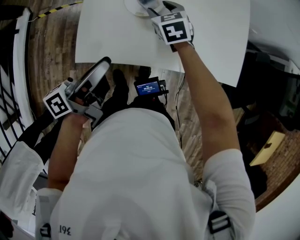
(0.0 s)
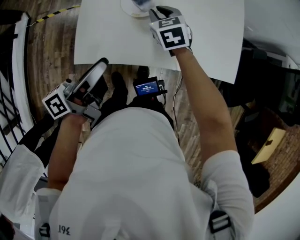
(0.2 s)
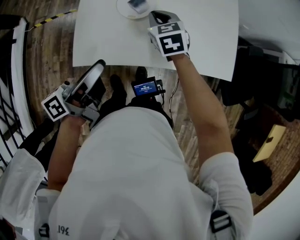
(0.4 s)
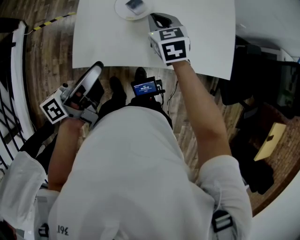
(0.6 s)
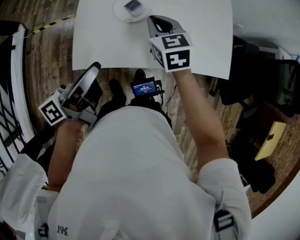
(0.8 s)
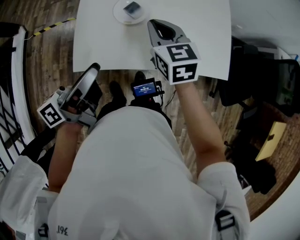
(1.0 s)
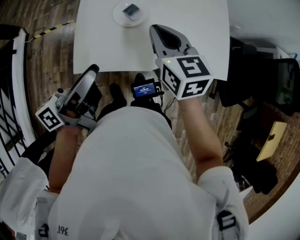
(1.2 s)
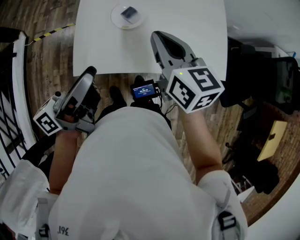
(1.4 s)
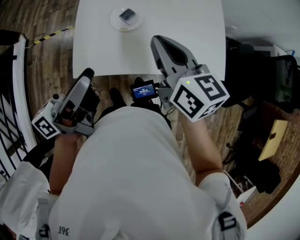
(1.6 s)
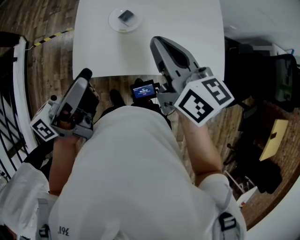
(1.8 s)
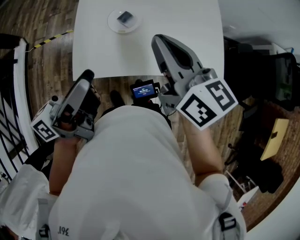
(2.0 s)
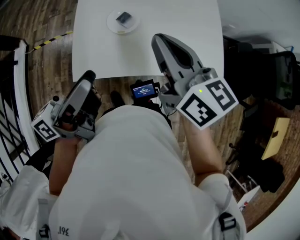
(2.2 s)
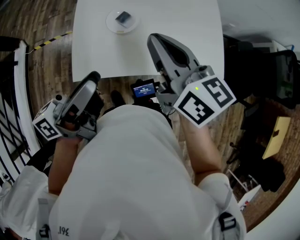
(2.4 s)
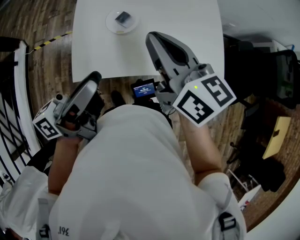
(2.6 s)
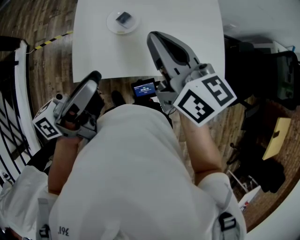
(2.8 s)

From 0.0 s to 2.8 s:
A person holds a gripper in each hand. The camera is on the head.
From 0.0 s to 1.4 s: The right gripper goes roughly 25 cm upward and backward, swivels roughly 40 degrees, and closes up. Meanwhile the left gripper moves upward, approximately 10 cm.
From 1.4 s to 2.8 s: The right gripper travels upward by some 5 cm.

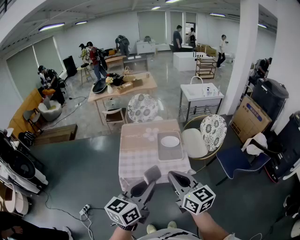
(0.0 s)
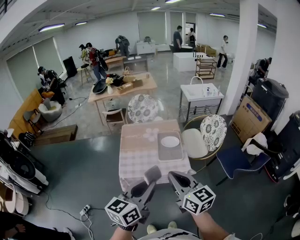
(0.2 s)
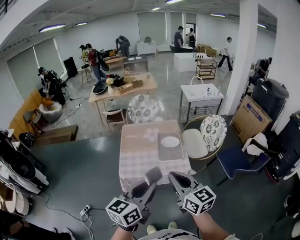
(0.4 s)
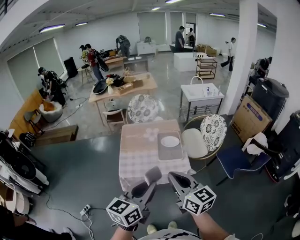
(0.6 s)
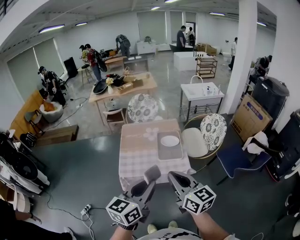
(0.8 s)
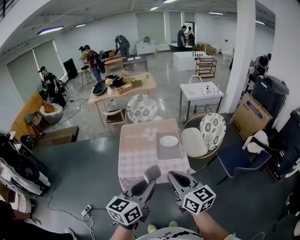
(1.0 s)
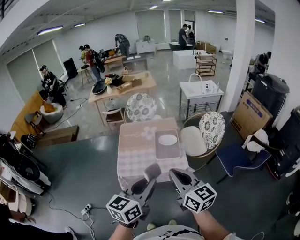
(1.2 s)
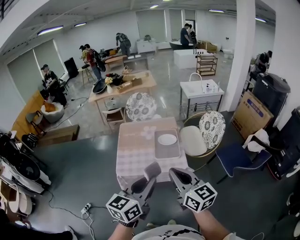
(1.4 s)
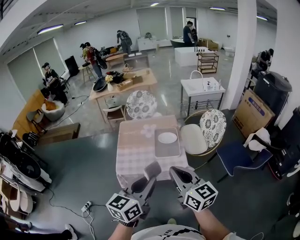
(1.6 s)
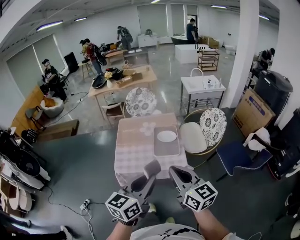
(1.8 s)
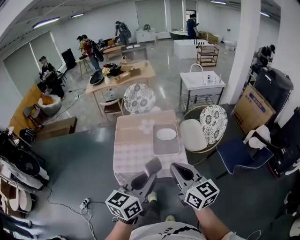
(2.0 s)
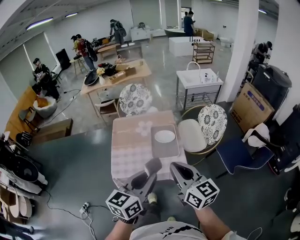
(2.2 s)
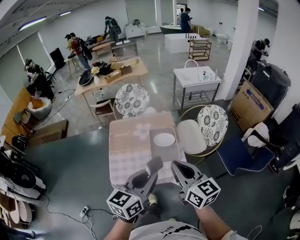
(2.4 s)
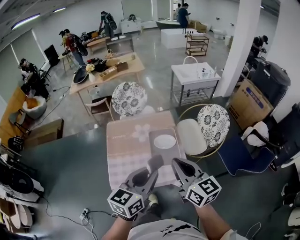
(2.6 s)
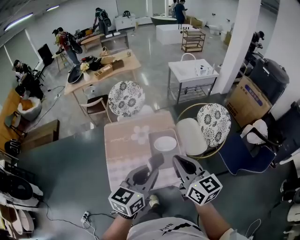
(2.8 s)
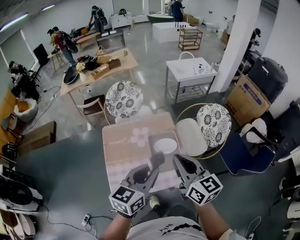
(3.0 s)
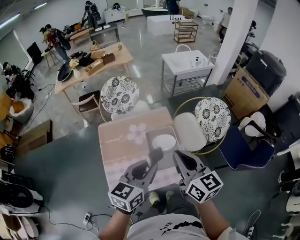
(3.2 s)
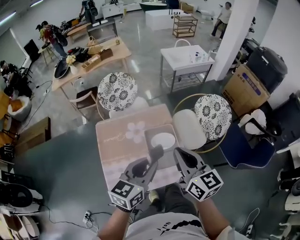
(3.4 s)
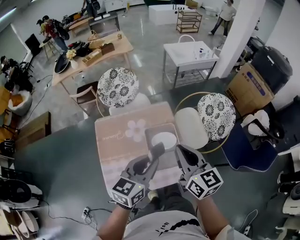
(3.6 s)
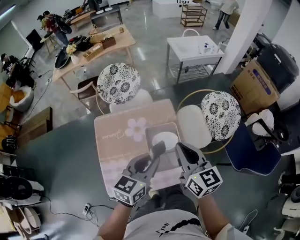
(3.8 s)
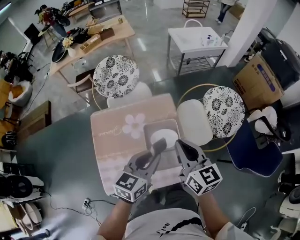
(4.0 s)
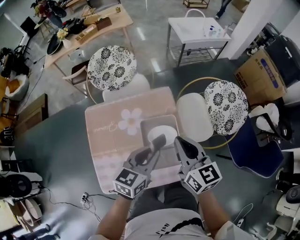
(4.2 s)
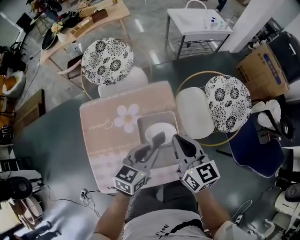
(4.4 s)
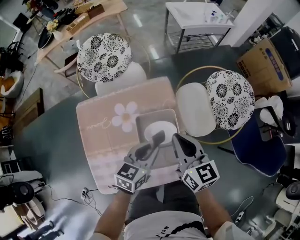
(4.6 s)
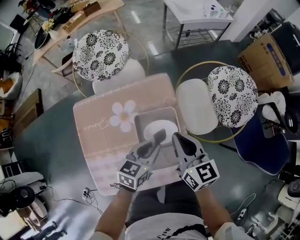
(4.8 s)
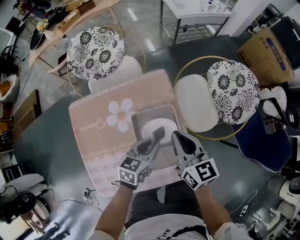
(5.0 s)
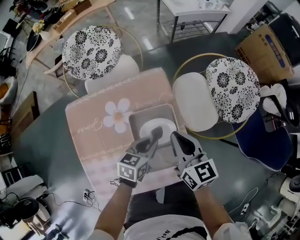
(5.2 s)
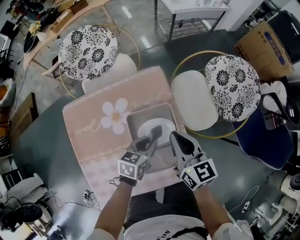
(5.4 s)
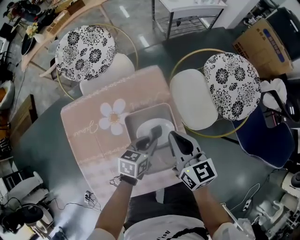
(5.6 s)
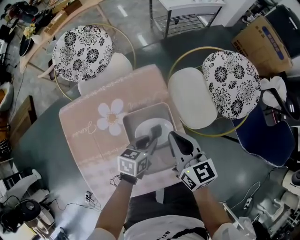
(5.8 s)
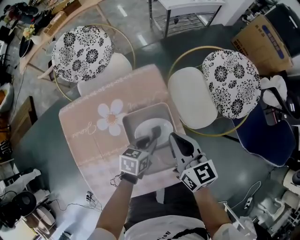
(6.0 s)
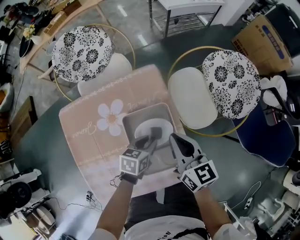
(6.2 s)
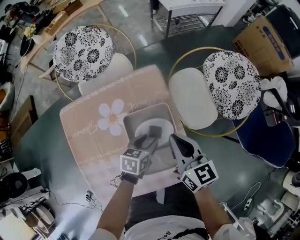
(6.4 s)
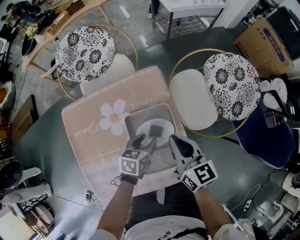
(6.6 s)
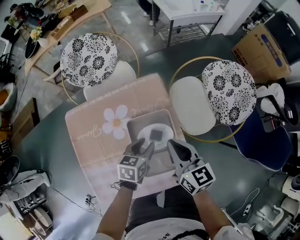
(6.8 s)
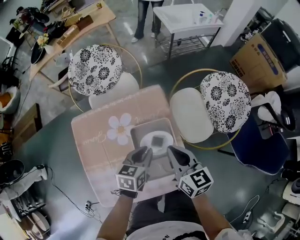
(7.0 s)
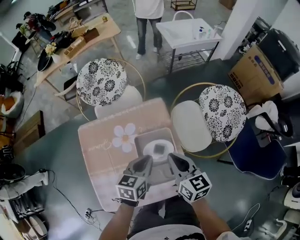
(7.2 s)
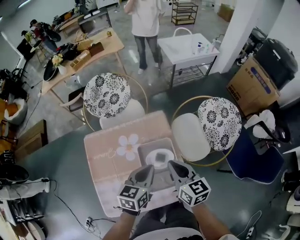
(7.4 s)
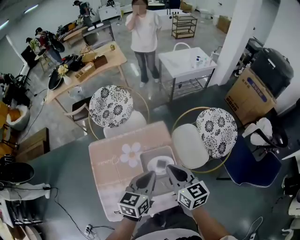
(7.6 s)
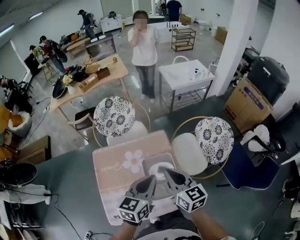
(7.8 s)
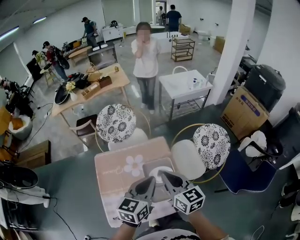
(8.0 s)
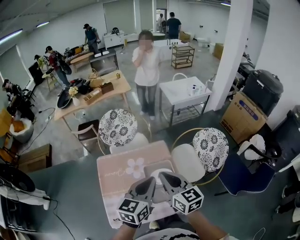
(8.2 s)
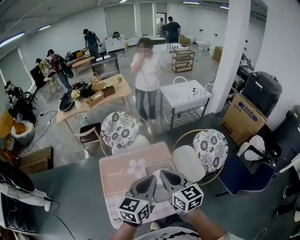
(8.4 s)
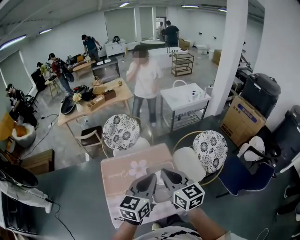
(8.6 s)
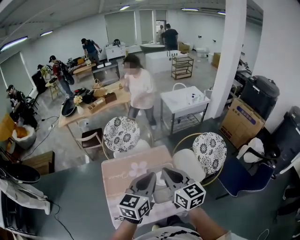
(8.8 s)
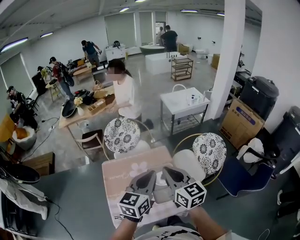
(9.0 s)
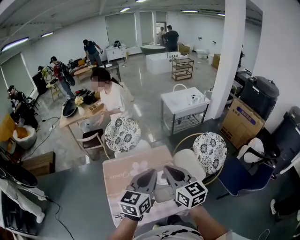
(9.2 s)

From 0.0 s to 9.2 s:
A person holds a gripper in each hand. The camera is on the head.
From 0.0 s to 1.6 s: Both grippers travel together to the right, about 5 cm.
From 1.6 s to 3.0 s: Both grippers move forward, roughly 30 cm.
From 3.0 s to 4.6 s: The two grippers go some 30 cm downward and forward.
From 4.6 s to 6.2 s: The left gripper is displaced downward by approximately 20 cm, and changes its angle by about 20 degrees. The right gripper shifts roughly 10 cm downward.
From 6.2 s to 7.6 s: The left gripper is displaced upward by roughly 30 cm, turns by some 30 degrees, and closes up, while the right gripper moves upward, roughly 15 cm.
From 7.6 s to 9.2 s: The two grippers go some 20 cm upward and backward.

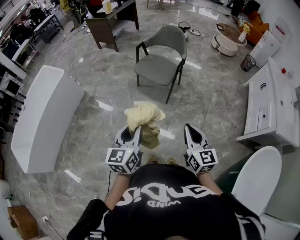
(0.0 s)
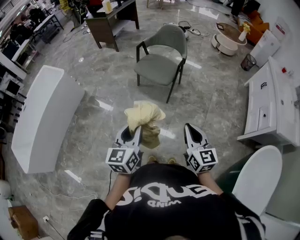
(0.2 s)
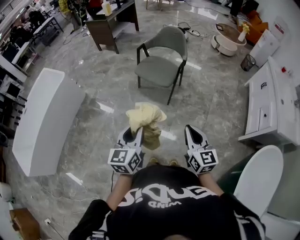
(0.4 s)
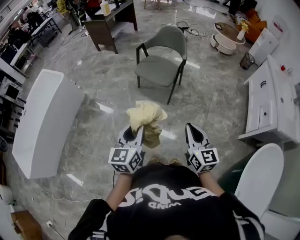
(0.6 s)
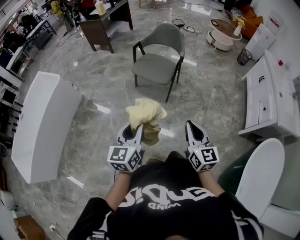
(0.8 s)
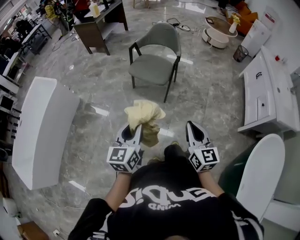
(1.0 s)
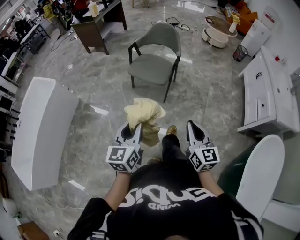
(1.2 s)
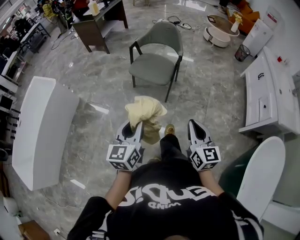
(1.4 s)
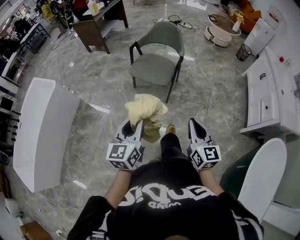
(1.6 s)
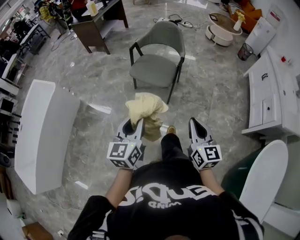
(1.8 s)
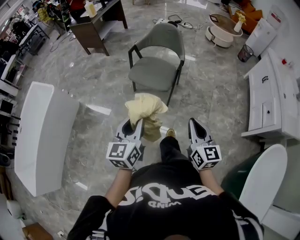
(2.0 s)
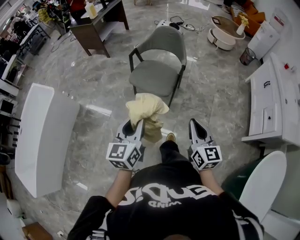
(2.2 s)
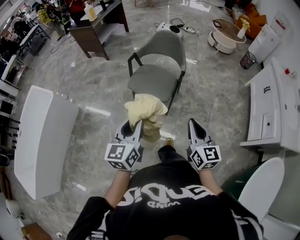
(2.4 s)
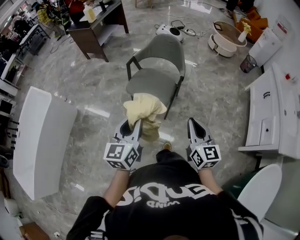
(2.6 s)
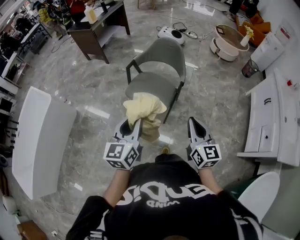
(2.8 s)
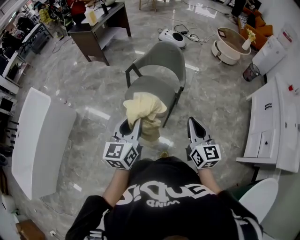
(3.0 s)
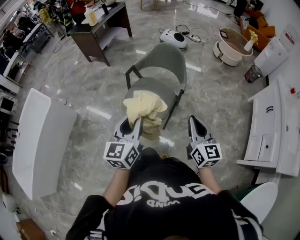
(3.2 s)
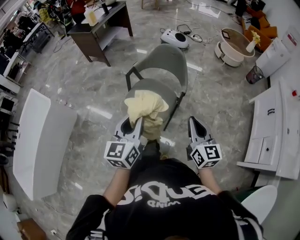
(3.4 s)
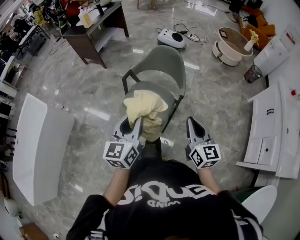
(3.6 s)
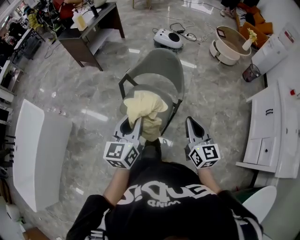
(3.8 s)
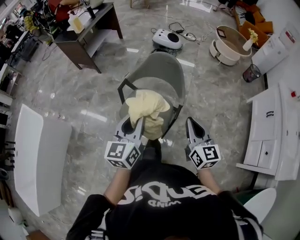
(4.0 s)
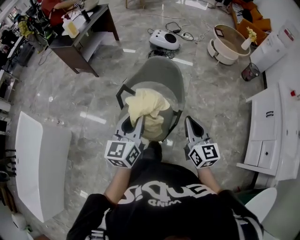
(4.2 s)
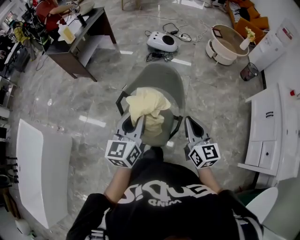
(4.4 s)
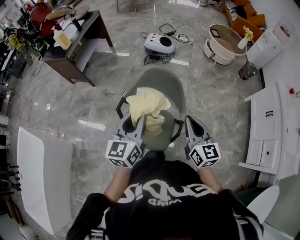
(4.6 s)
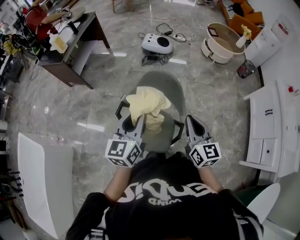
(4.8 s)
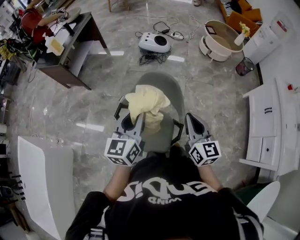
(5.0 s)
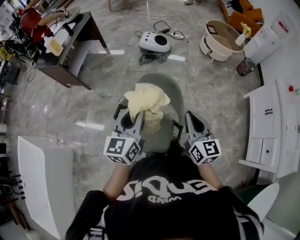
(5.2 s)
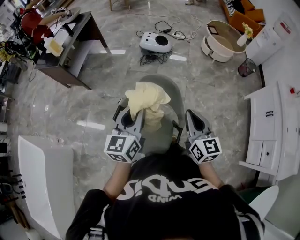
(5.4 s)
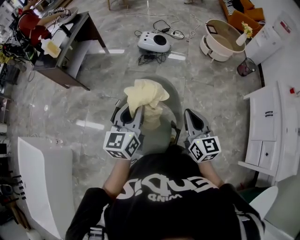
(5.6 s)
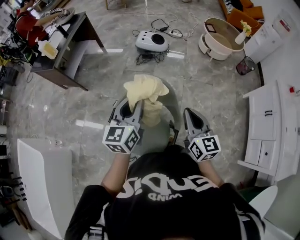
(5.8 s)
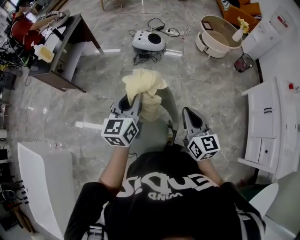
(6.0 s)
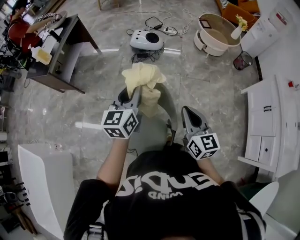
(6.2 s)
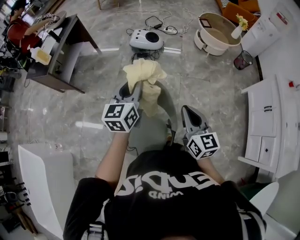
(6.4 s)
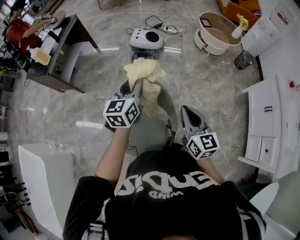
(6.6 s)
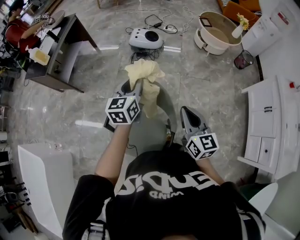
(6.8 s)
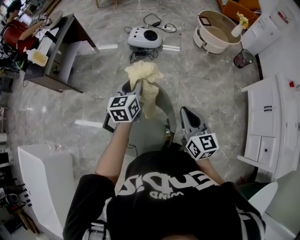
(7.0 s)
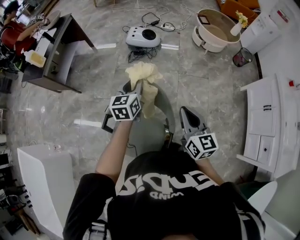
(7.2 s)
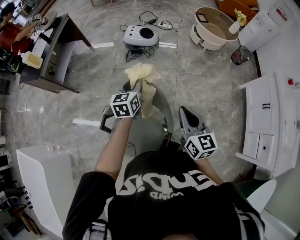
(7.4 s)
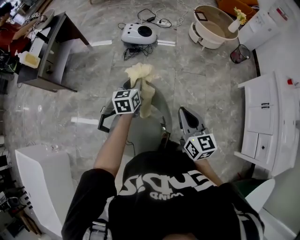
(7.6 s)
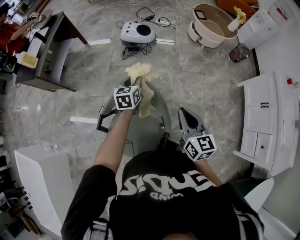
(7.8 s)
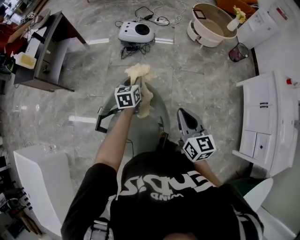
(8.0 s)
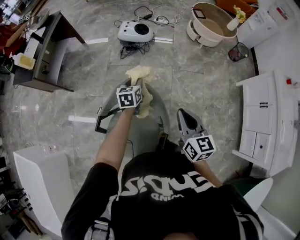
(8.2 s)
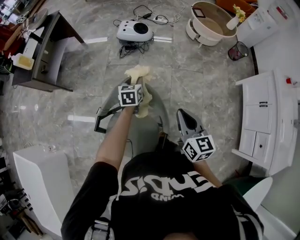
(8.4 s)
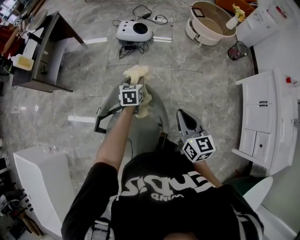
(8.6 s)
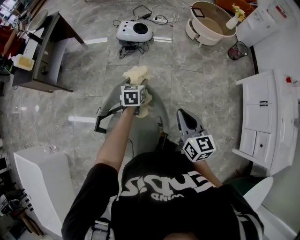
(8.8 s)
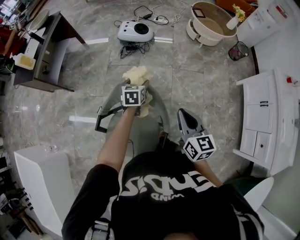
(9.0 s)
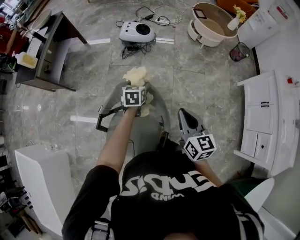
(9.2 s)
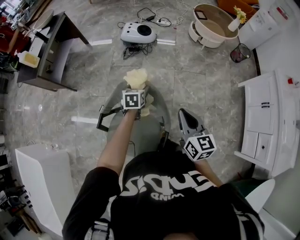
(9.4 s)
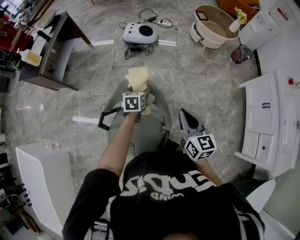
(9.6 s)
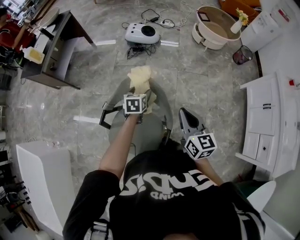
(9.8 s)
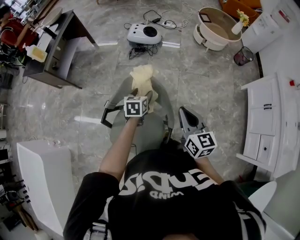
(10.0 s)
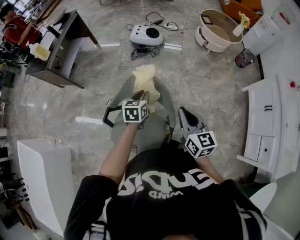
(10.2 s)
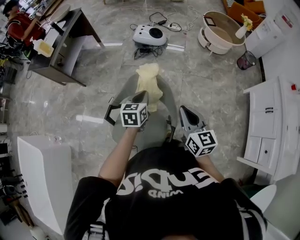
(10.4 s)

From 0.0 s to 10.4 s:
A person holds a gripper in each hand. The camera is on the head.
From 0.0 s to 1.4 s: The right gripper ends up roughly 5 cm from where it was; the left gripper goes some 5 cm forward.
From 1.4 s to 3.0 s: The grippers both shift forward by some 30 cm.
From 3.0 s to 4.4 s: The two grippers go some 30 cm forward.
From 4.4 s to 6.0 s: The grippers both shift forward by about 20 cm.
From 6.0 s to 7.4 s: The left gripper shifts some 20 cm forward and downward. Meanwhile the right gripper moves roughly 5 cm.
From 7.4 s to 9.0 s: The left gripper is displaced downward by about 10 cm, and opens.
From 9.0 s to 10.4 s: The right gripper goes roughly 5 cm backward. The left gripper travels backward and upward by some 15 cm, and closes up.

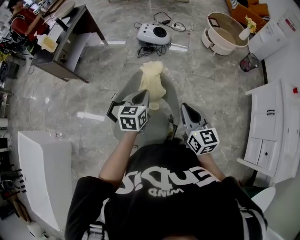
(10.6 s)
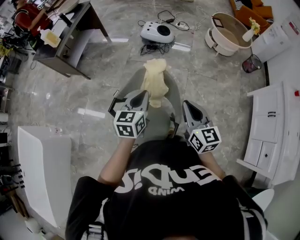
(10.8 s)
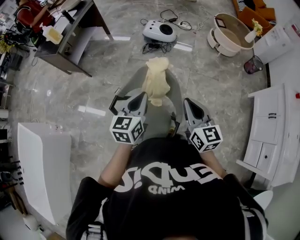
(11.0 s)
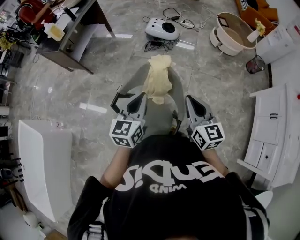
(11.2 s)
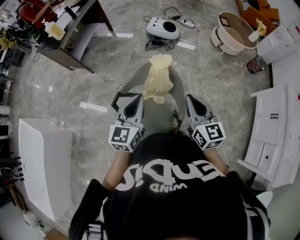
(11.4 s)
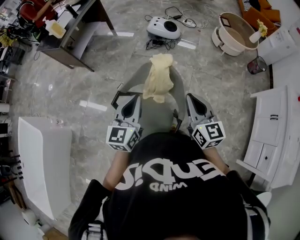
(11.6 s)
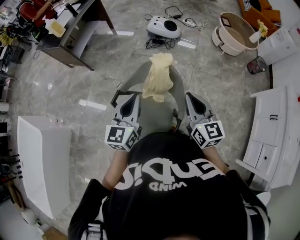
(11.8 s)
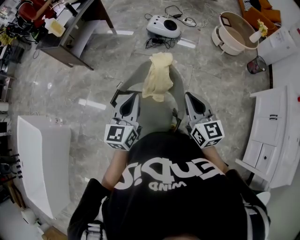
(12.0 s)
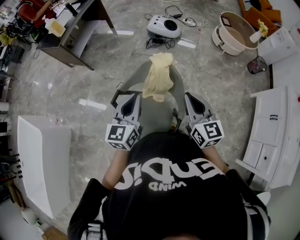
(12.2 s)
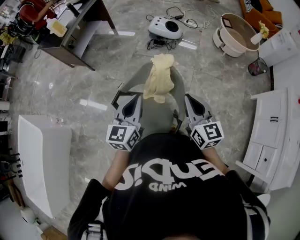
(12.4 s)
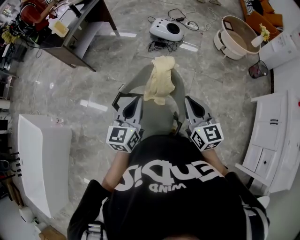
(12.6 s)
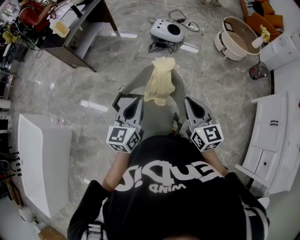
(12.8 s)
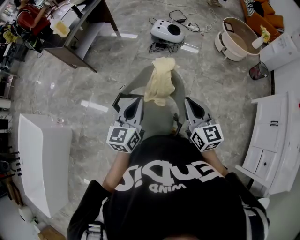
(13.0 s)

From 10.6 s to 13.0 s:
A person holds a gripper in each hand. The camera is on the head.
From 10.6 s to 11.8 s: The left gripper moves upward, backward and to the left, approximately 15 cm, and swivels some 20 degrees.
From 11.8 s to 13.0 s: The grippers make only small movements.
